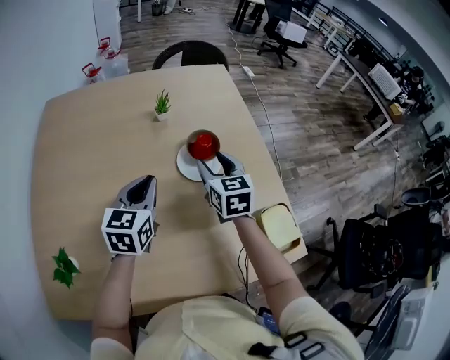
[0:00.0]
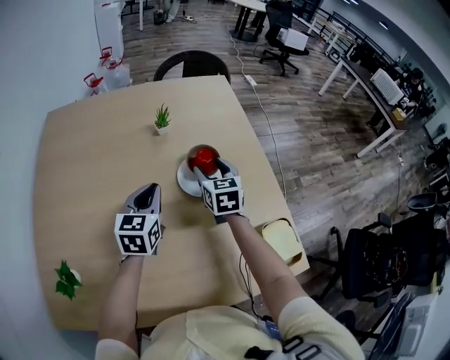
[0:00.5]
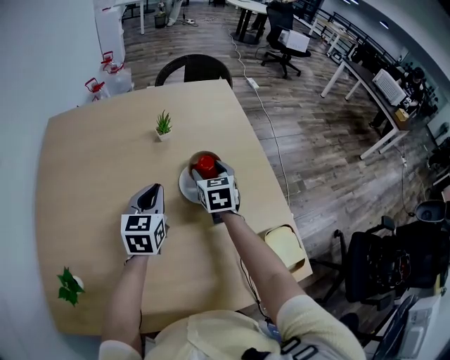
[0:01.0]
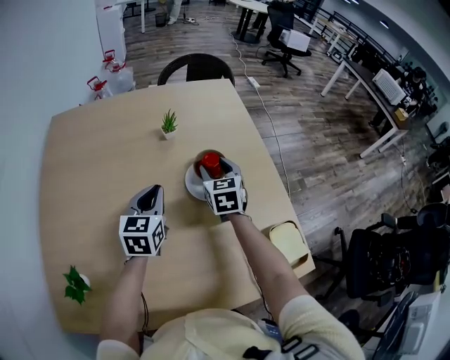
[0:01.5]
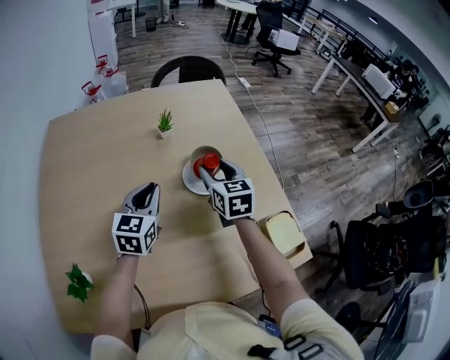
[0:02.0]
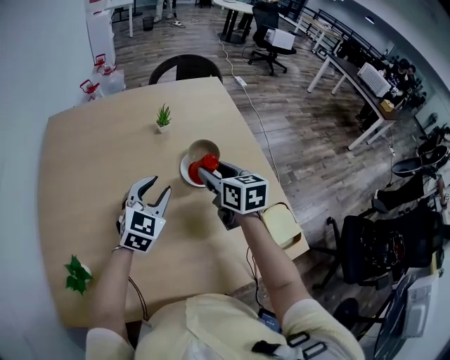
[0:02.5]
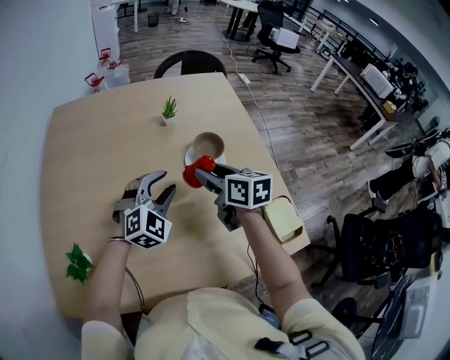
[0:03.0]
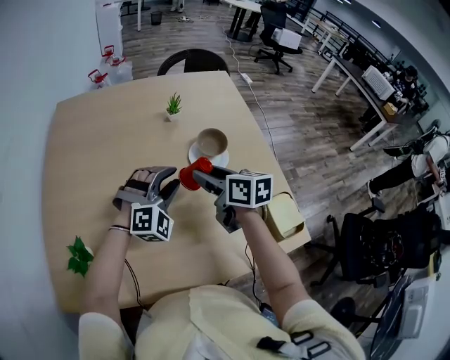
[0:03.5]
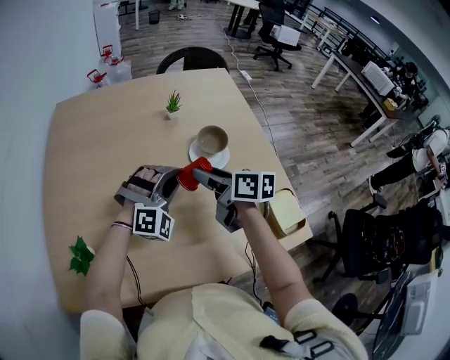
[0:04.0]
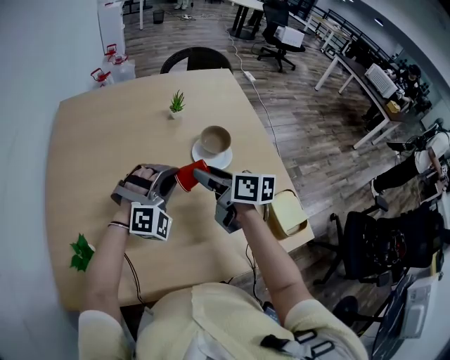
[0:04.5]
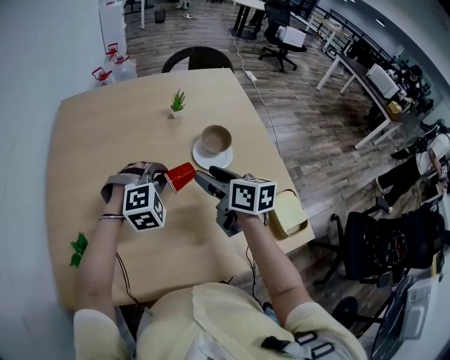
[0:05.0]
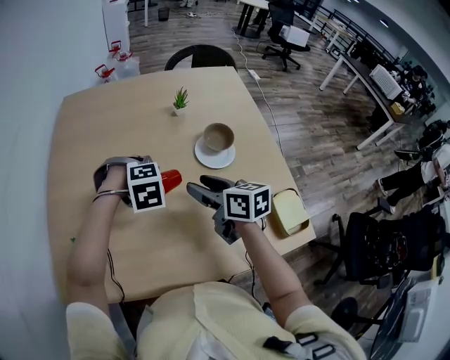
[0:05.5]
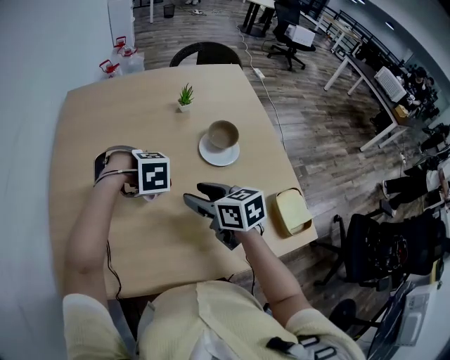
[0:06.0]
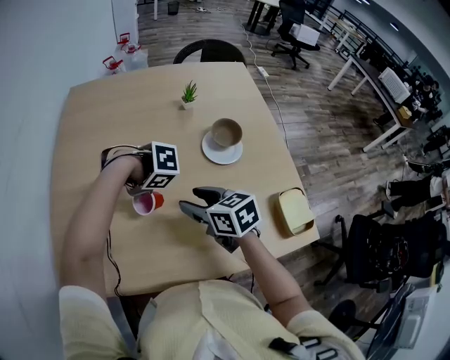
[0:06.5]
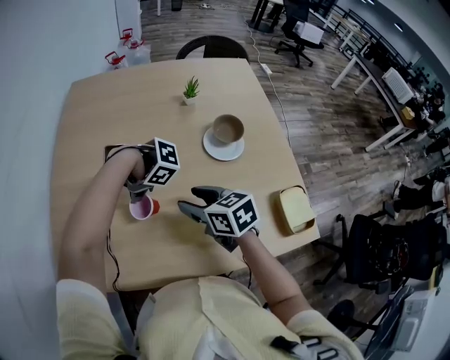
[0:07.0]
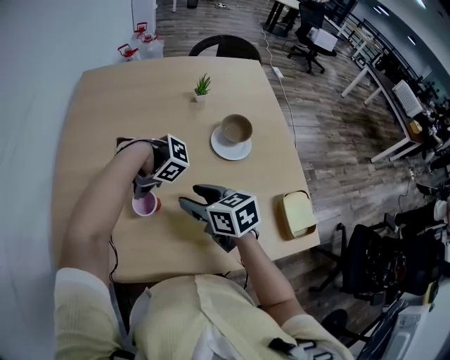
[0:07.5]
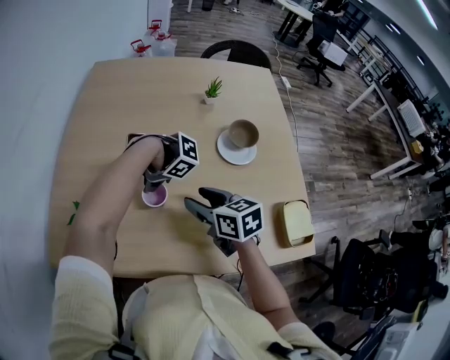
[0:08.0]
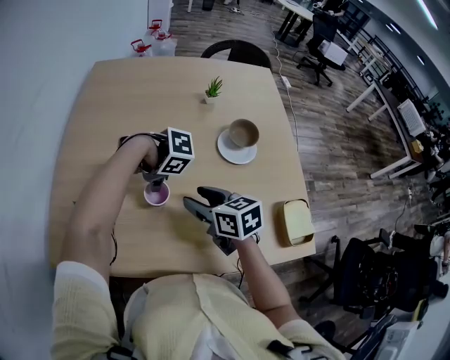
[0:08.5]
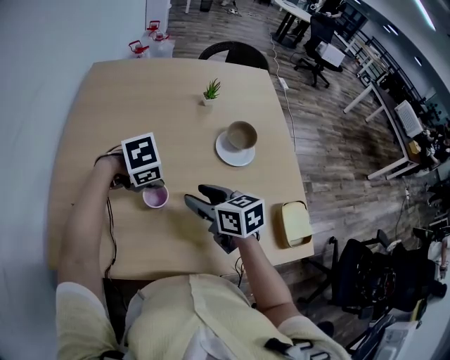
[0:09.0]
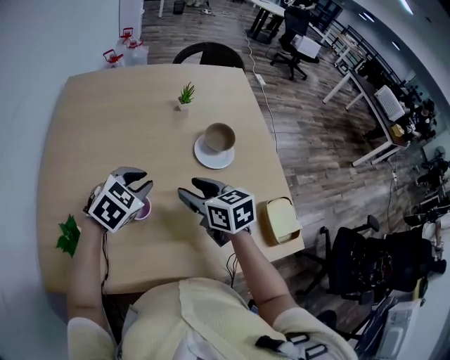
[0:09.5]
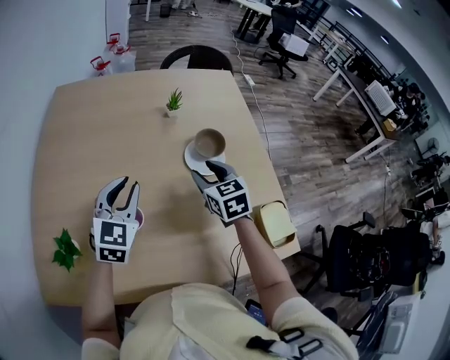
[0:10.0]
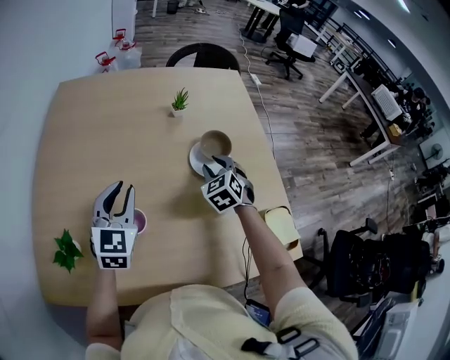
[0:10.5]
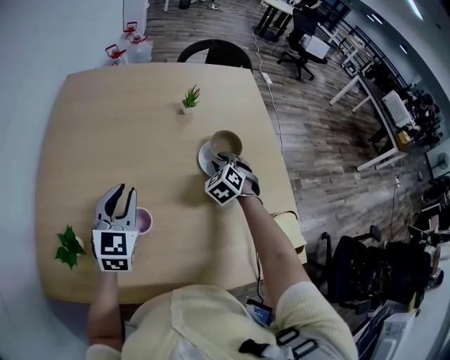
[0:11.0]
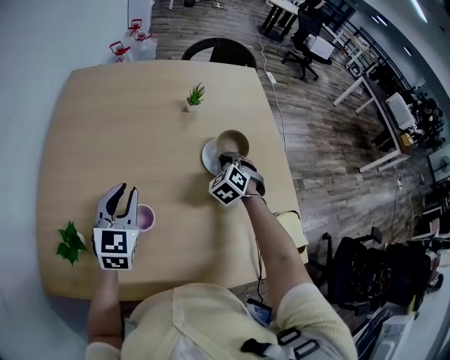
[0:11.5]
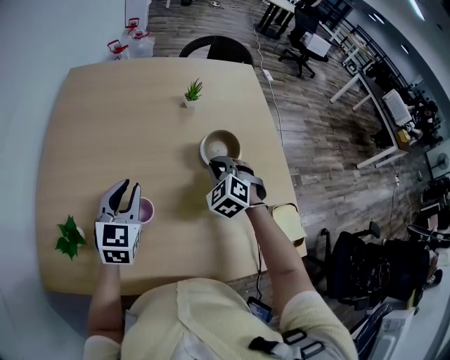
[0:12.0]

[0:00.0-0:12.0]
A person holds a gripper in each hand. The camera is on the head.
0:00.0 to 0:02.0: The right gripper goes forward and returns, about 10 cm each way.
0:02.0 to 0:04.0: The right gripper is displaced backward and to the left by approximately 15 cm, and rotates roughly 40 degrees. The left gripper moves backward, approximately 5 cm, and rotates around the line of its fingers by approximately 80 degrees, clockwise from behind.
0:04.0 to 0:06.0: The right gripper moves some 10 cm, and changes its angle by roughly 20 degrees. The left gripper moves roughly 15 cm, and points its fingers some 60 degrees further downward.
0:06.0 to 0:08.0: The left gripper moves about 10 cm, and swivels approximately 40 degrees.
0:08.0 to 0:10.0: The left gripper moves upward, about 15 cm, and tips its fingers upward by some 40 degrees. Meanwhile the right gripper shifts by approximately 15 cm, and swivels approximately 30 degrees.
0:10.0 to 0:12.0: The right gripper shifts about 5 cm downward, twists roughly 40 degrees counterclockwise, seen from behind, and closes; the left gripper shifts by some 5 cm.

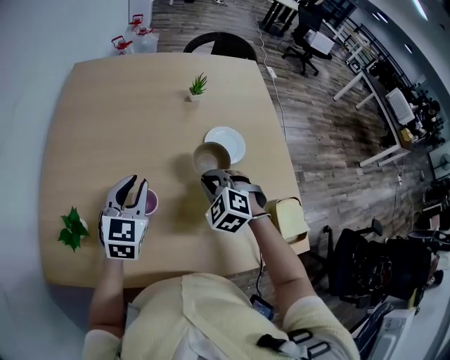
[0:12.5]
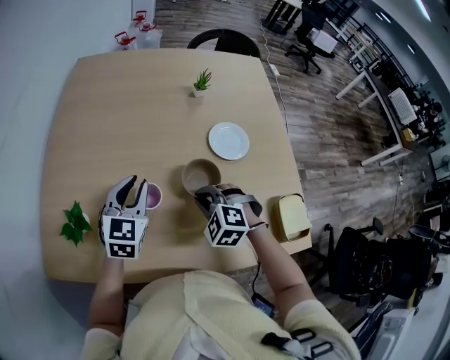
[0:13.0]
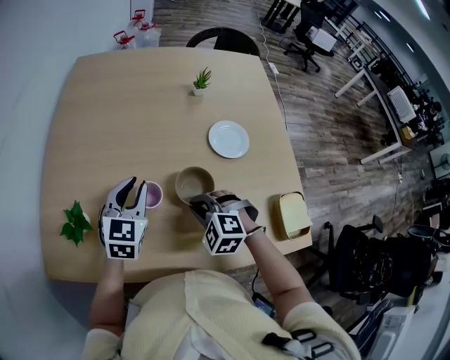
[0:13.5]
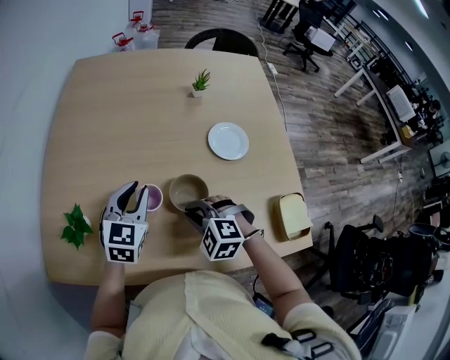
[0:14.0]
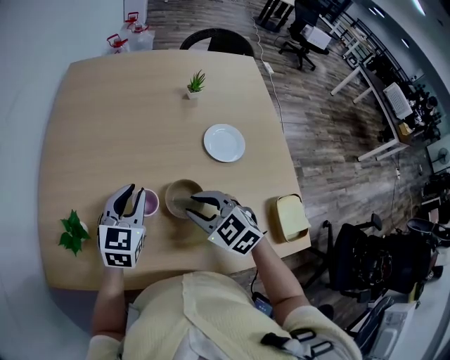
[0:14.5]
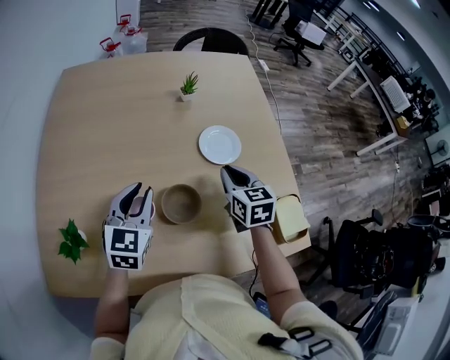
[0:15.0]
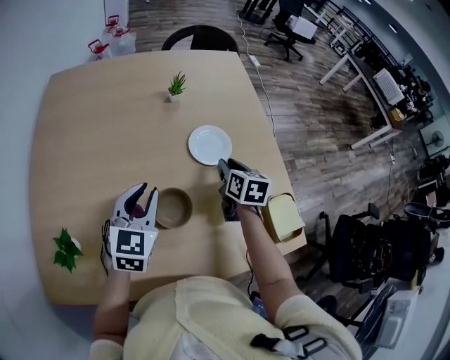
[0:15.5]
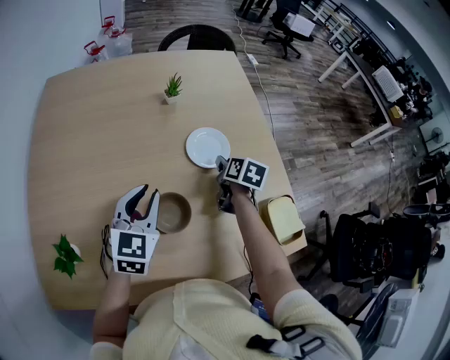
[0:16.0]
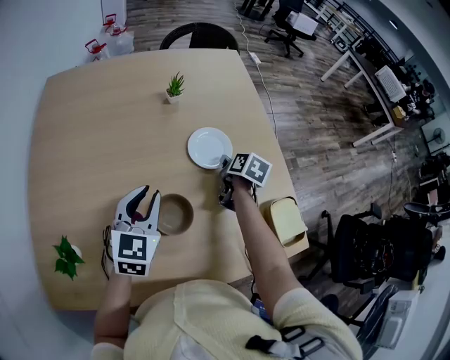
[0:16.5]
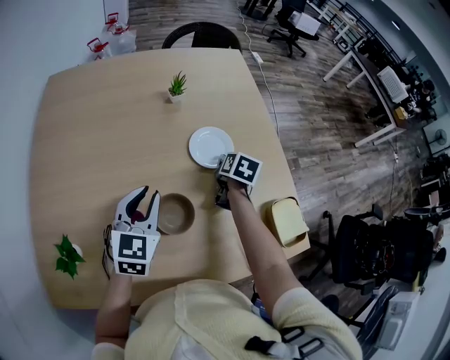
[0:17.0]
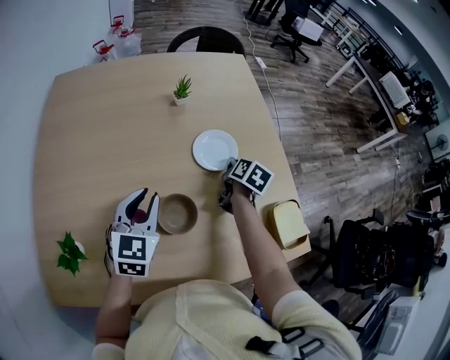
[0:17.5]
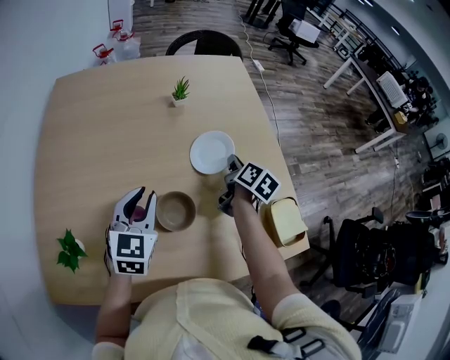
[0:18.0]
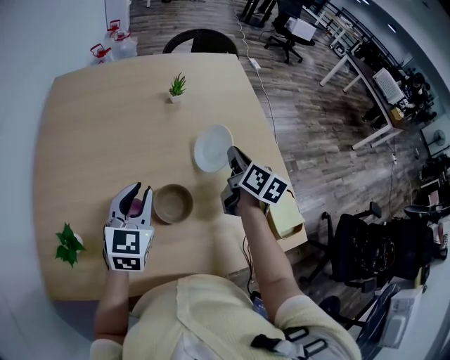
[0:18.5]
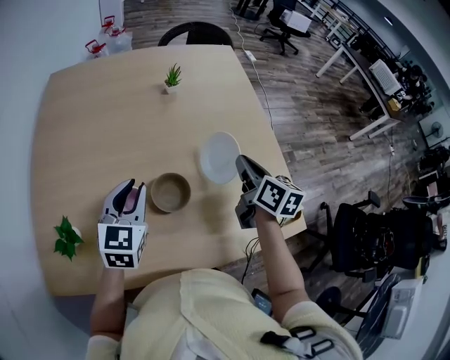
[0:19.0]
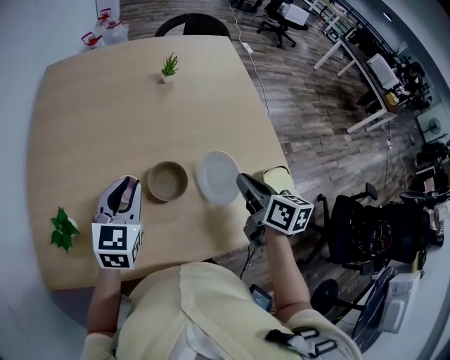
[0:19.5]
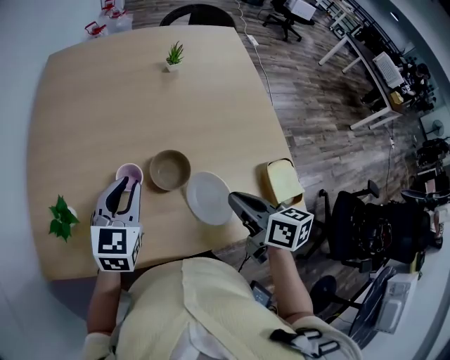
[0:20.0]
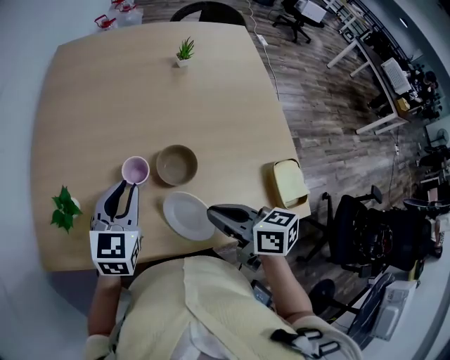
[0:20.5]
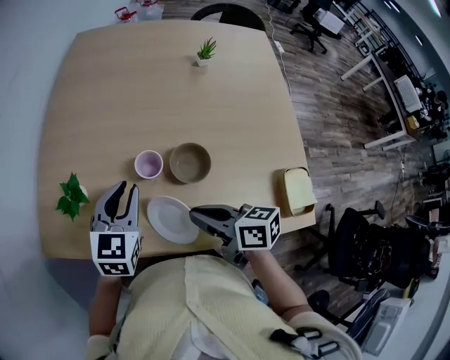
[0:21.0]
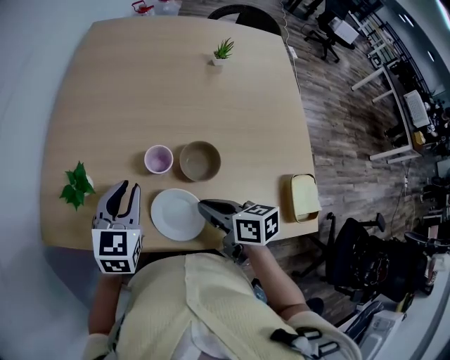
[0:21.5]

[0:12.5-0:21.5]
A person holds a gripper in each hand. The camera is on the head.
0:12.5 to 0:14.5: The right gripper heads backward and to the left, covering roughly 10 cm, swivels some 30 degrees, and opens up.
0:14.5 to 0:17.0: The right gripper shifts by about 30 cm, twists some 70 degrees clockwise, seen from behind, and closes, then reopens, while the left gripper shifts by some 10 cm.
0:17.0 to 0:19.5: The right gripper shifts roughly 25 cm backward and upward, rotates some 30 degrees, and closes; the left gripper moves backward, roughly 5 cm.
0:19.5 to 0:21.5: The right gripper shifts by about 20 cm, and swivels approximately 40 degrees, while the left gripper ends up roughly 10 cm from where it was.

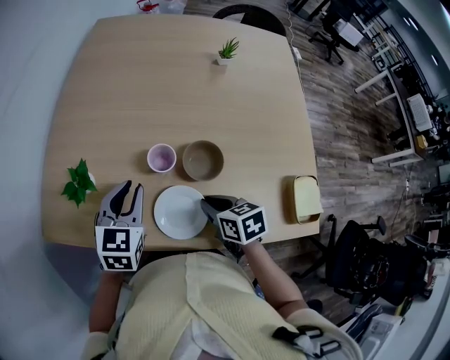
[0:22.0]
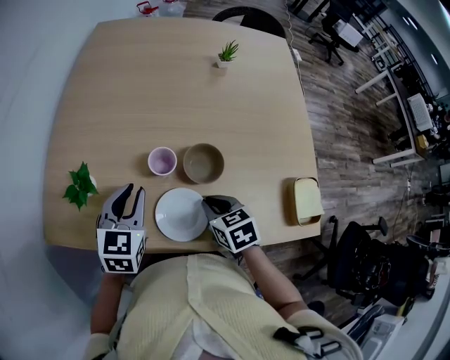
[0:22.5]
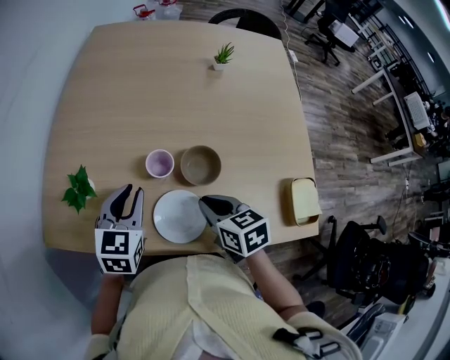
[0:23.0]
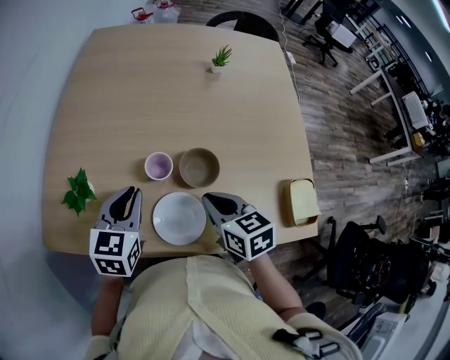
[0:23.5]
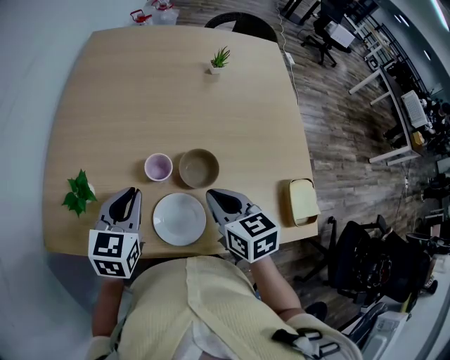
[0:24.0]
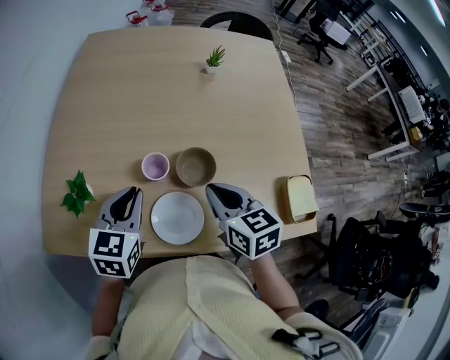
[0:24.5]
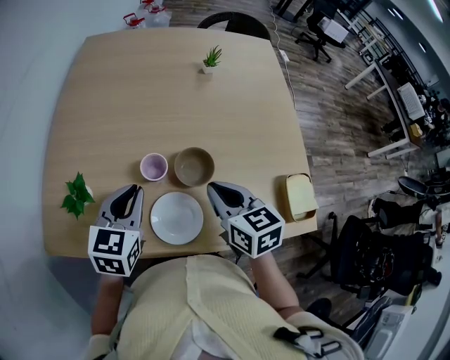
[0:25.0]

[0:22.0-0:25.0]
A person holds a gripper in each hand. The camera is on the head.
0:22.0 to 0:23.5: The right gripper goes about 10 cm upward.
0:23.5 to 0:25.0: The grippers stay close to where they were, moving slightly.

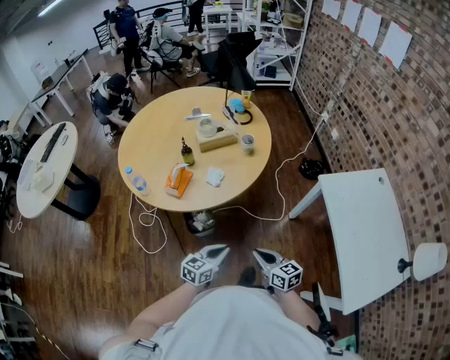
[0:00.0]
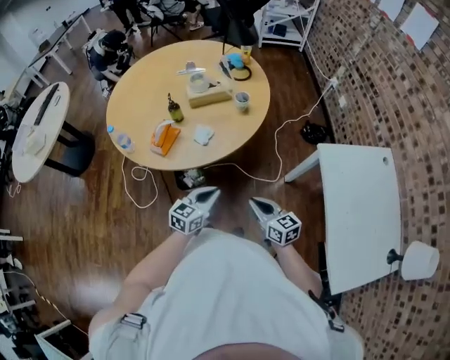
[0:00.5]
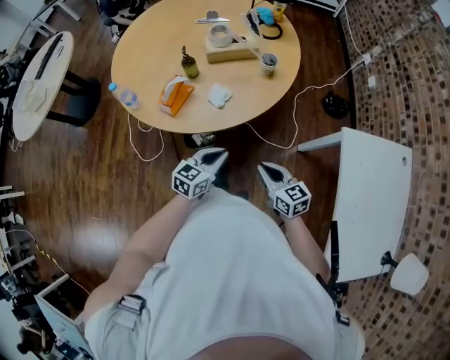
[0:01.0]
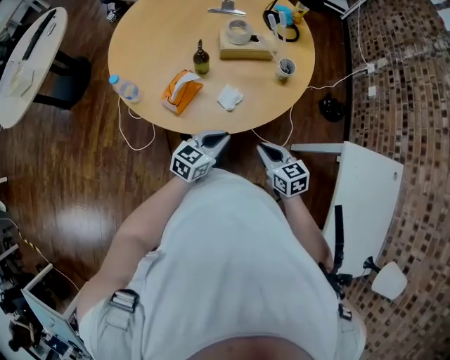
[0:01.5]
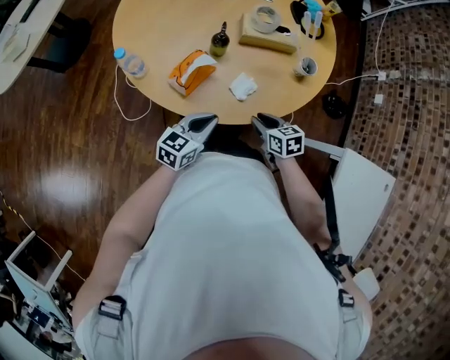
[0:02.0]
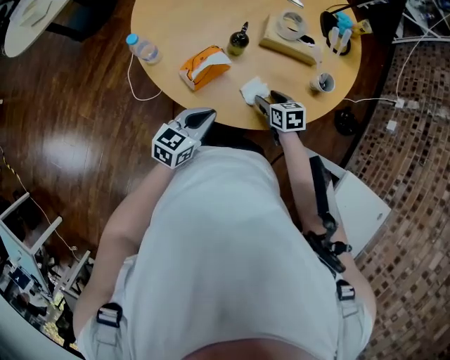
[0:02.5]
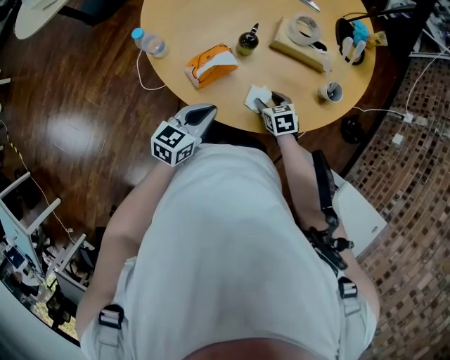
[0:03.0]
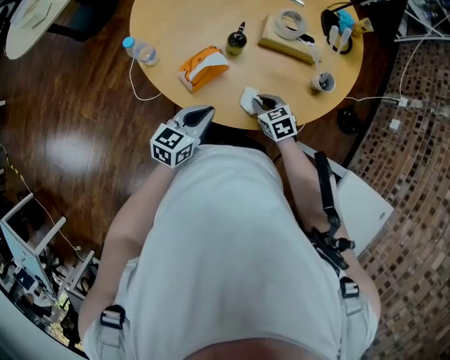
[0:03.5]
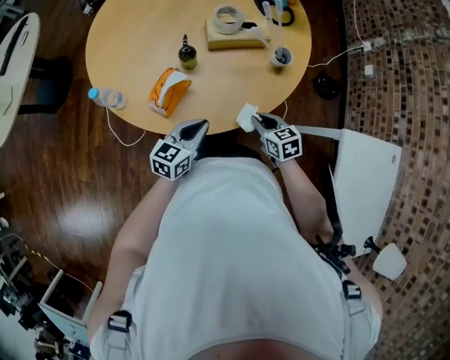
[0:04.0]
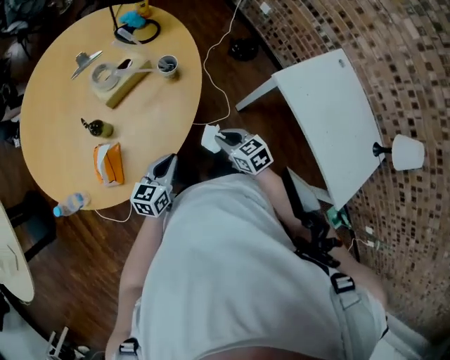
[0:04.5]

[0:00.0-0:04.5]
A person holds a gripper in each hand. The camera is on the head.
0:00.0 to 0:02.0: Both grippers move forward, about 30 cm. The right gripper turns by roughly 30 degrees, and opens up.
0:02.0 to 0:04.5: The right gripper reaches about 5 cm downward, then returns, rotates some 30 degrees, and opens and closes again. The left gripper moves roughly 10 cm, and swivels approximately 30 degrees.
